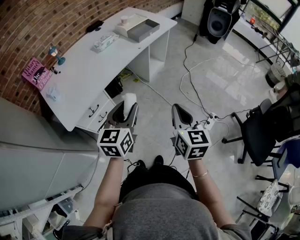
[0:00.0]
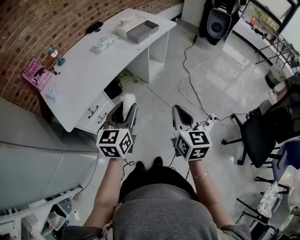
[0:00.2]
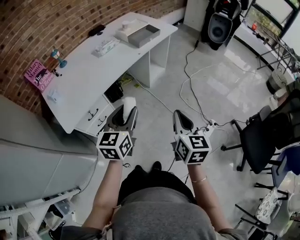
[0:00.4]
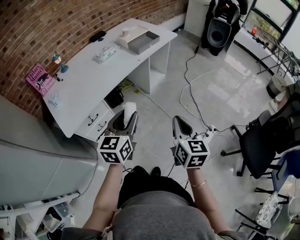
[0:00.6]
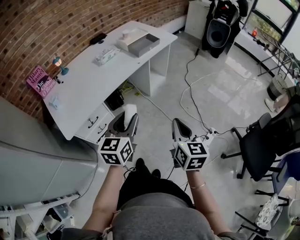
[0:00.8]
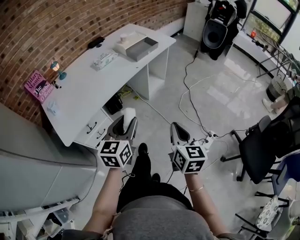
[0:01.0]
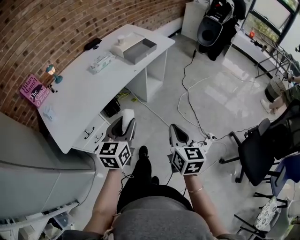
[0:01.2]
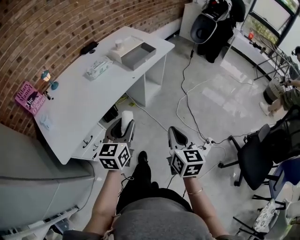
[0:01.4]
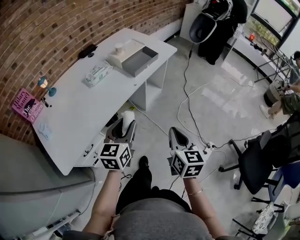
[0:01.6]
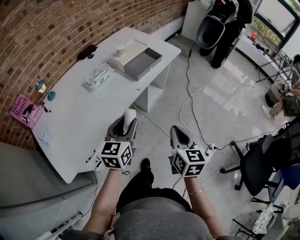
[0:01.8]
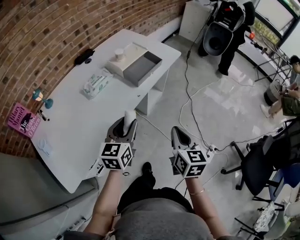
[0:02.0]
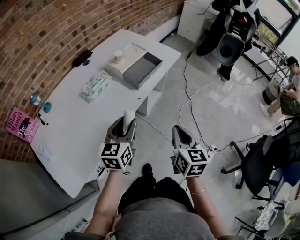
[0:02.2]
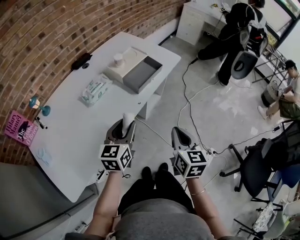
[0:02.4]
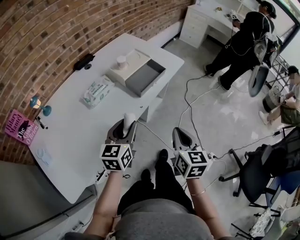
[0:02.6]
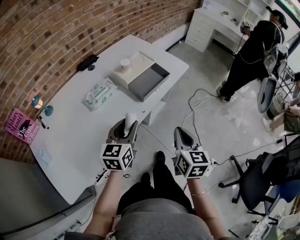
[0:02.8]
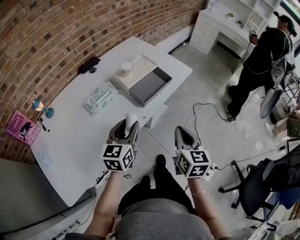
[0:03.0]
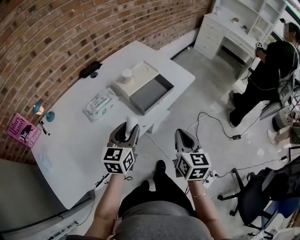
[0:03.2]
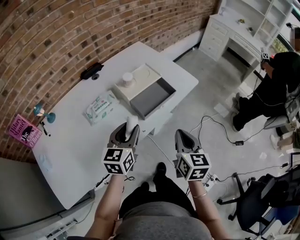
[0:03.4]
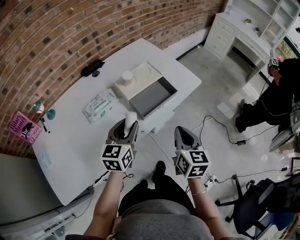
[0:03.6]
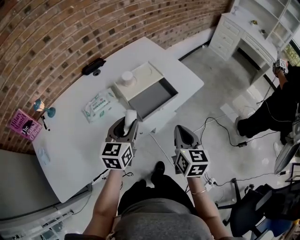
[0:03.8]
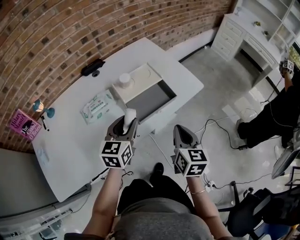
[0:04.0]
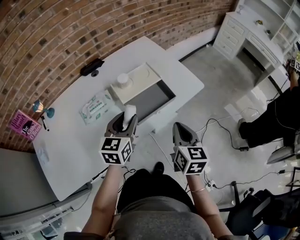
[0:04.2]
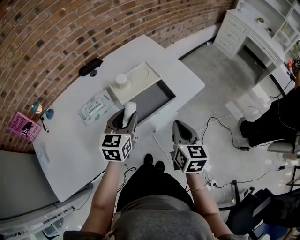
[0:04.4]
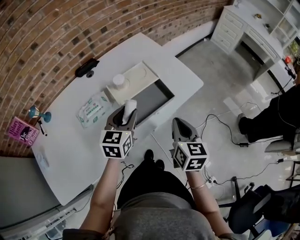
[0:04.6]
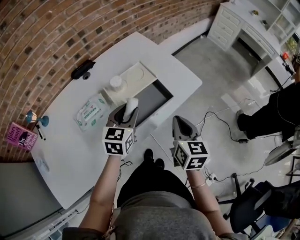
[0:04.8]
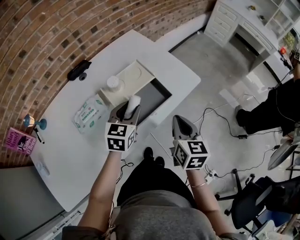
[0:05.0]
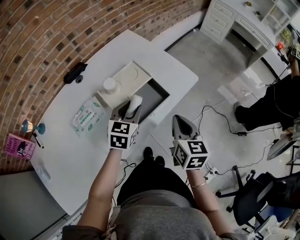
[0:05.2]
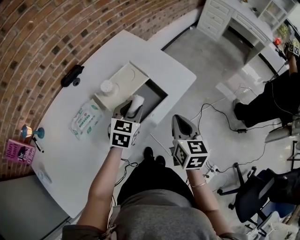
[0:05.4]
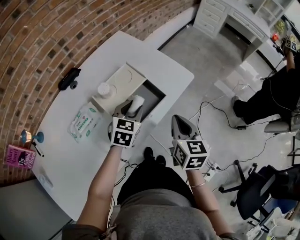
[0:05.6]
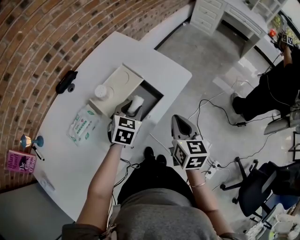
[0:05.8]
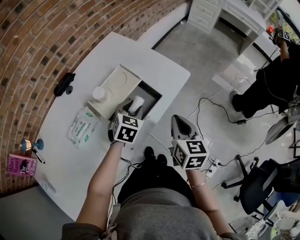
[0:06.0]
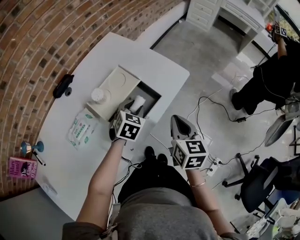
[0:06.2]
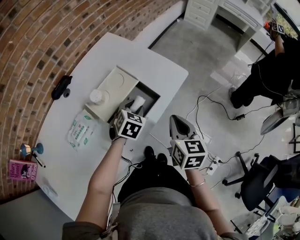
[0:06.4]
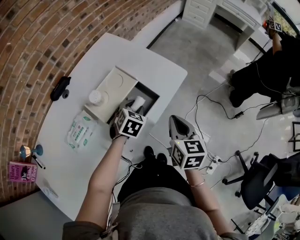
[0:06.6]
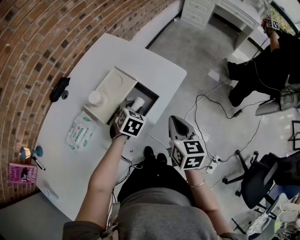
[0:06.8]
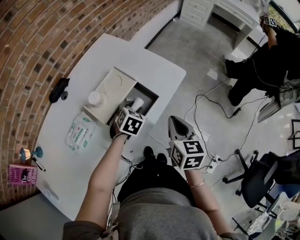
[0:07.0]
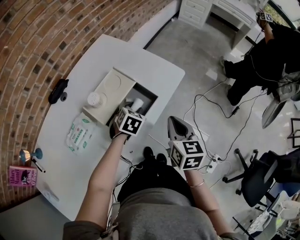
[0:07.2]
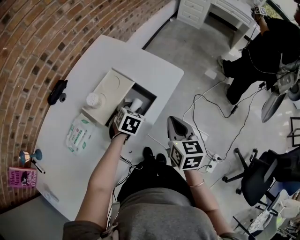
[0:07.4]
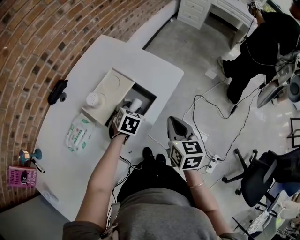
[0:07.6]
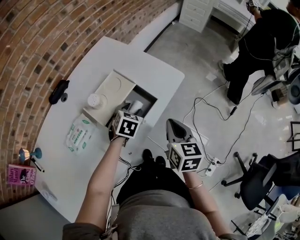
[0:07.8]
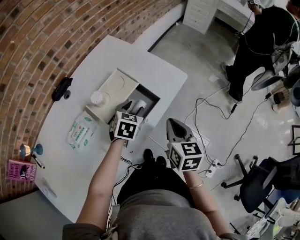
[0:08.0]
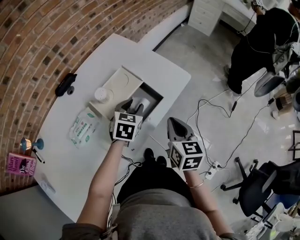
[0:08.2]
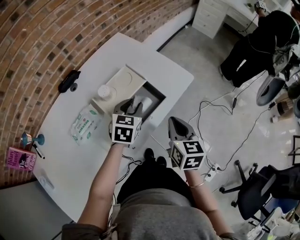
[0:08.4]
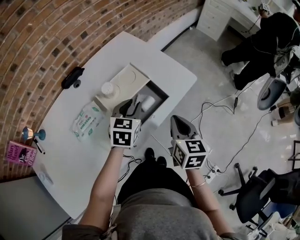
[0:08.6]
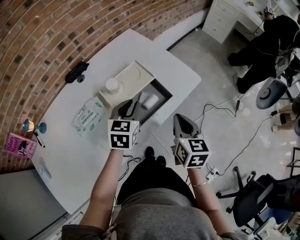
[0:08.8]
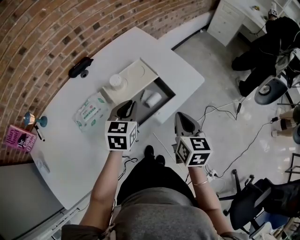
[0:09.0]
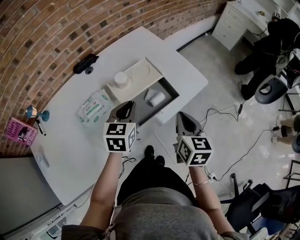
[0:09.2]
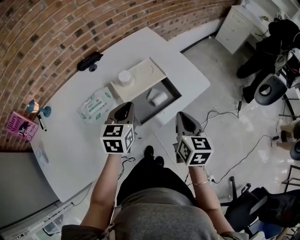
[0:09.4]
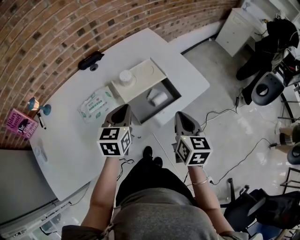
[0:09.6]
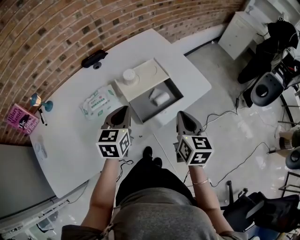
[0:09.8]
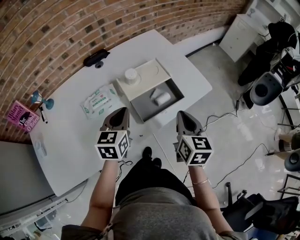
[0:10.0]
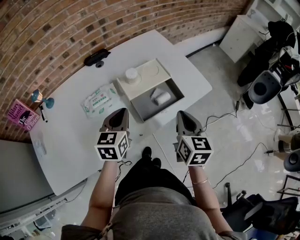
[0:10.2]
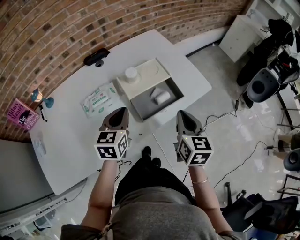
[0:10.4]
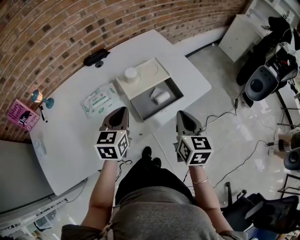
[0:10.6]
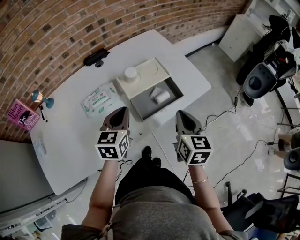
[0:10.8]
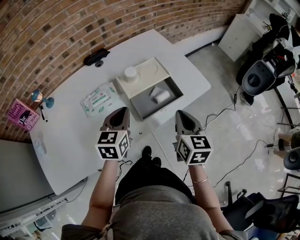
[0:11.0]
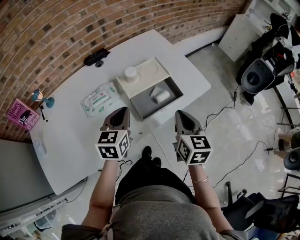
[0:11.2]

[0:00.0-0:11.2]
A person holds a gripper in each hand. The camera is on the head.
0:00.0 to 0:01.6: The two grippers go approximately 20 cm forward.
0:01.6 to 0:03.2: The two grippers go some 25 cm forward.
0:03.2 to 0:04.8: Both grippers move forward, approximately 15 cm.
0:04.8 to 0:06.4: The left gripper is displaced downward, forward and to the right by approximately 15 cm, and turns by about 40 degrees.
0:06.4 to 0:08.0: The grippers stay close to where they were, moving slightly.
0:08.0 to 0:09.6: The left gripper goes some 20 cm to the left, upward and backward, changes its angle by about 40 degrees, and closes its fingers; the right gripper moves some 5 cm.
0:09.6 to 0:11.2: The grippers make only small movements.

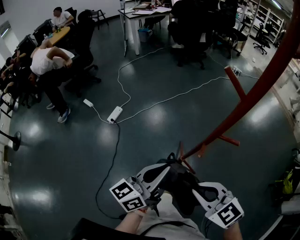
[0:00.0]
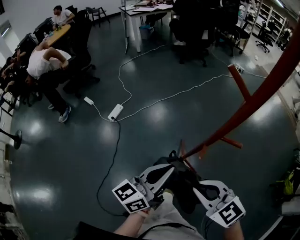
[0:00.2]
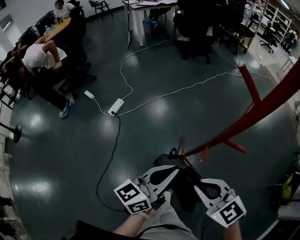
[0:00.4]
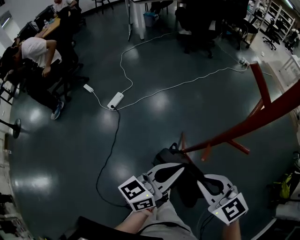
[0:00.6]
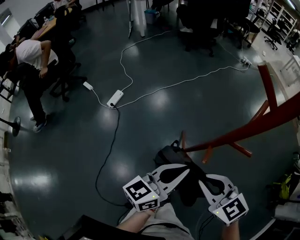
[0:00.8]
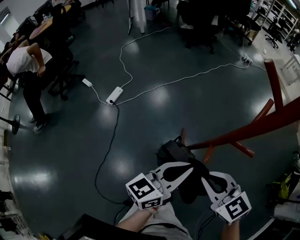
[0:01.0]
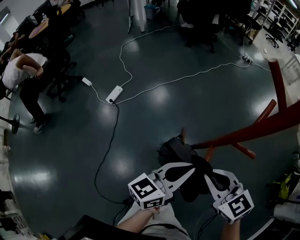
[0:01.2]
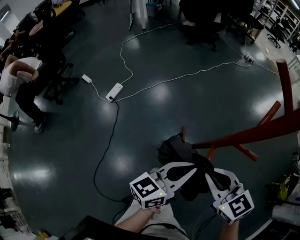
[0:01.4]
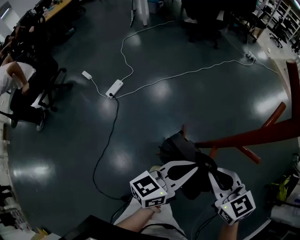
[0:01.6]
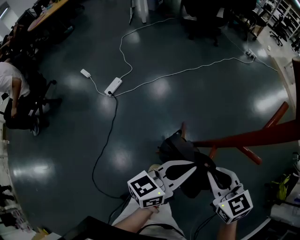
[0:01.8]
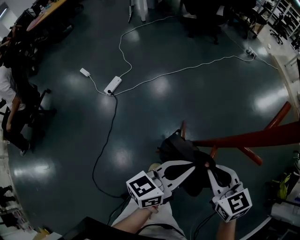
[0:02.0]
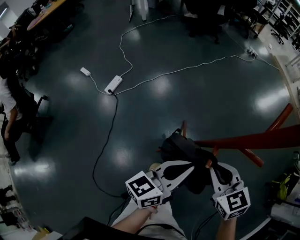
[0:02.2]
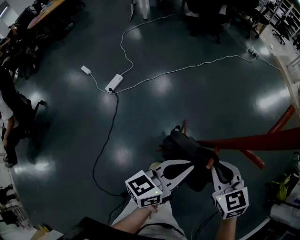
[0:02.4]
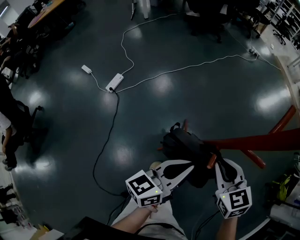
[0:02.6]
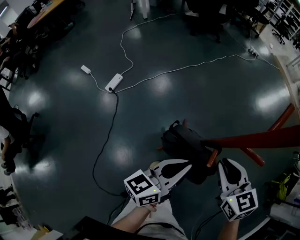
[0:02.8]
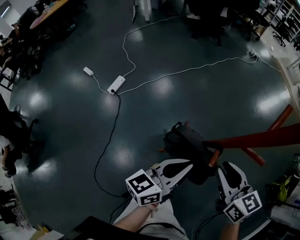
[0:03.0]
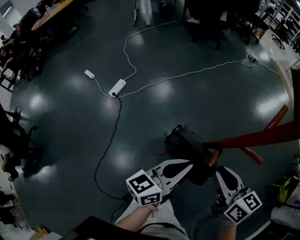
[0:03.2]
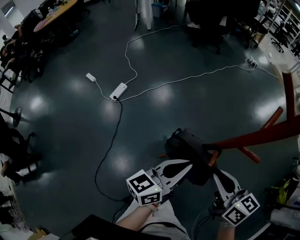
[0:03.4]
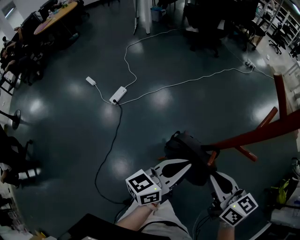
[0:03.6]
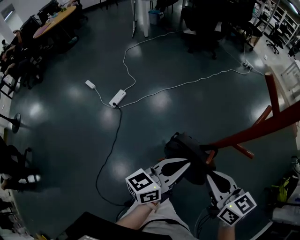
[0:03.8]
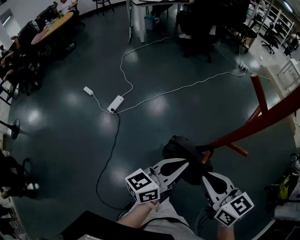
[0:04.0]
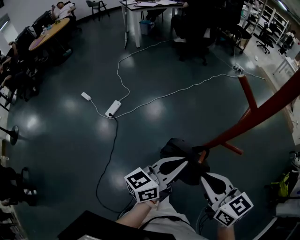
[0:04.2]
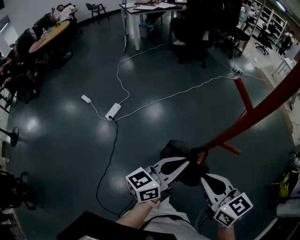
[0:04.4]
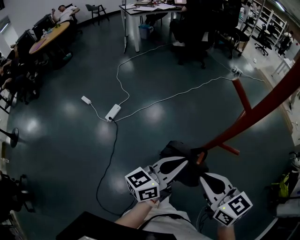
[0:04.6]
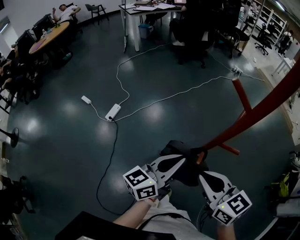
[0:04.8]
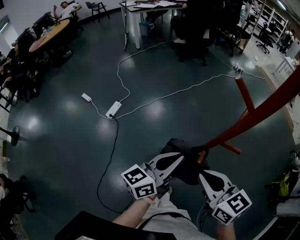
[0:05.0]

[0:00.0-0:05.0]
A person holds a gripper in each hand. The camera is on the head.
0:00.0 to 0:01.6: The right gripper moves forward, downward and to the right, approximately 15 cm. The left gripper travels to the right, downward and forward by about 15 cm.
0:01.6 to 0:03.4: The right gripper moves roughly 5 cm downward and comes back, and changes its angle by about 30 degrees.
0:03.4 to 0:05.0: The grippers both shift upward by approximately 5 cm.

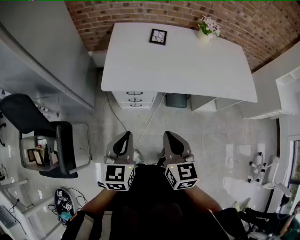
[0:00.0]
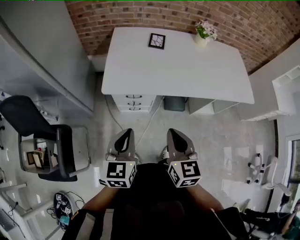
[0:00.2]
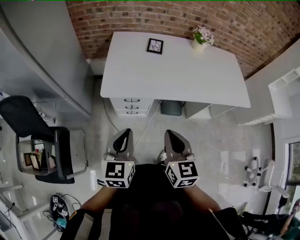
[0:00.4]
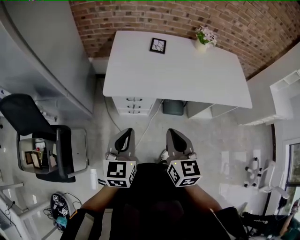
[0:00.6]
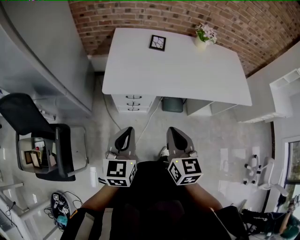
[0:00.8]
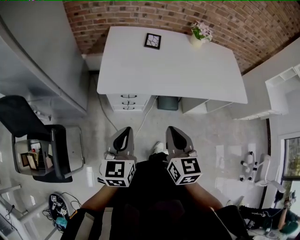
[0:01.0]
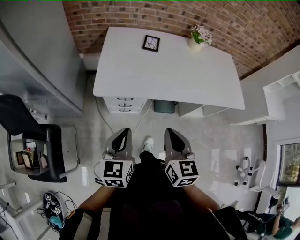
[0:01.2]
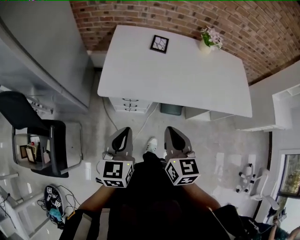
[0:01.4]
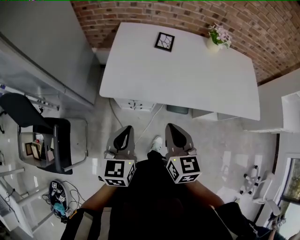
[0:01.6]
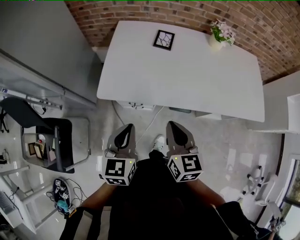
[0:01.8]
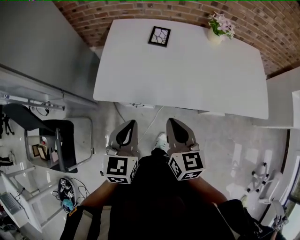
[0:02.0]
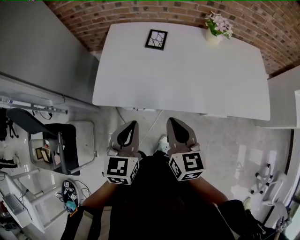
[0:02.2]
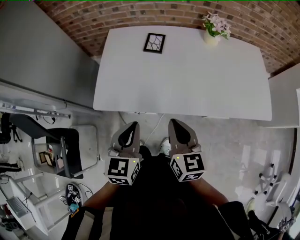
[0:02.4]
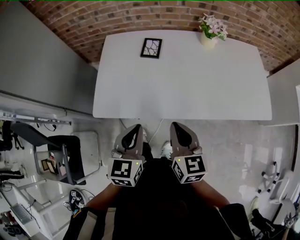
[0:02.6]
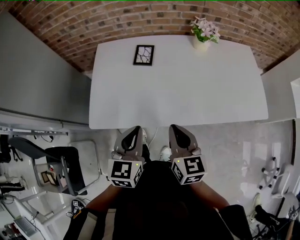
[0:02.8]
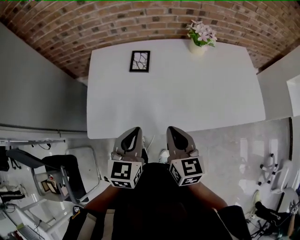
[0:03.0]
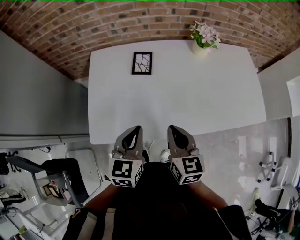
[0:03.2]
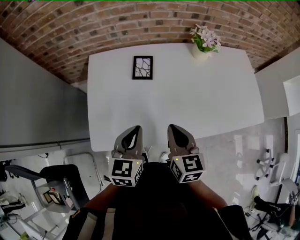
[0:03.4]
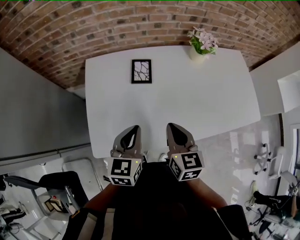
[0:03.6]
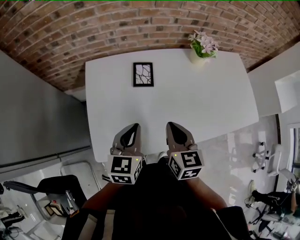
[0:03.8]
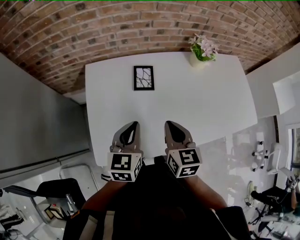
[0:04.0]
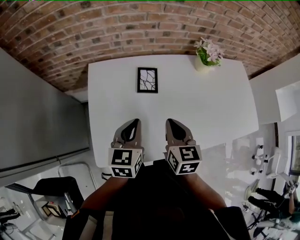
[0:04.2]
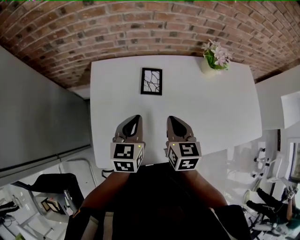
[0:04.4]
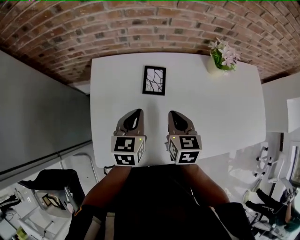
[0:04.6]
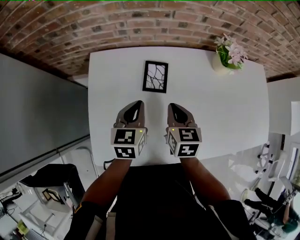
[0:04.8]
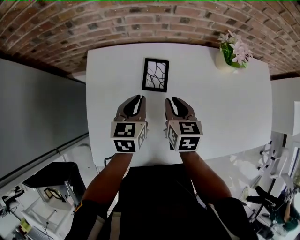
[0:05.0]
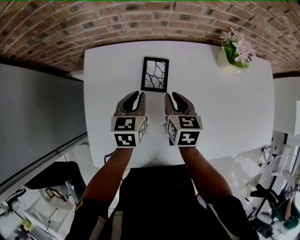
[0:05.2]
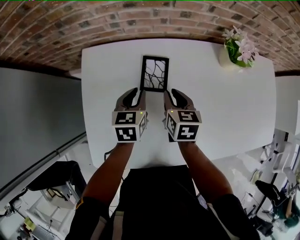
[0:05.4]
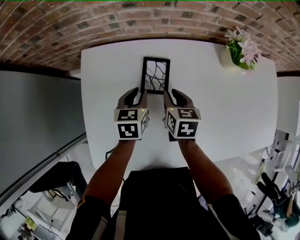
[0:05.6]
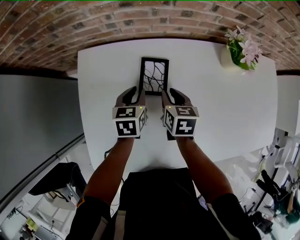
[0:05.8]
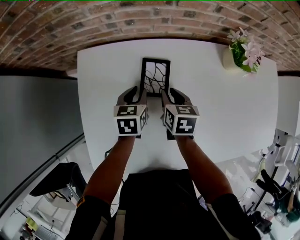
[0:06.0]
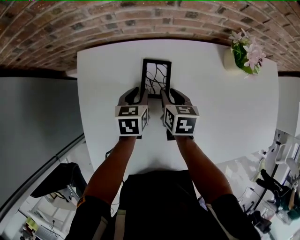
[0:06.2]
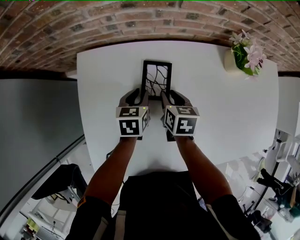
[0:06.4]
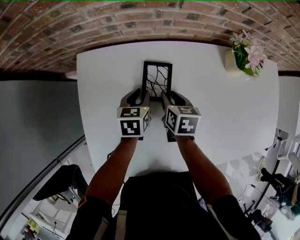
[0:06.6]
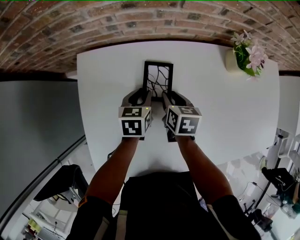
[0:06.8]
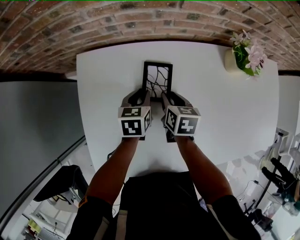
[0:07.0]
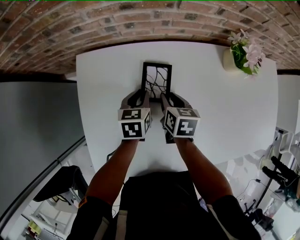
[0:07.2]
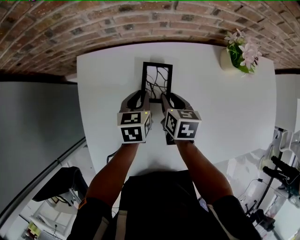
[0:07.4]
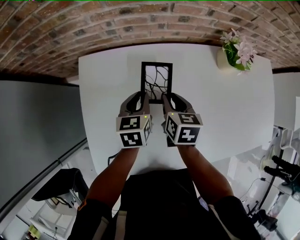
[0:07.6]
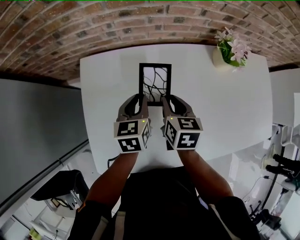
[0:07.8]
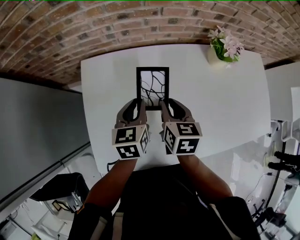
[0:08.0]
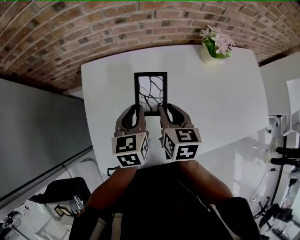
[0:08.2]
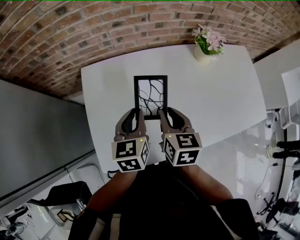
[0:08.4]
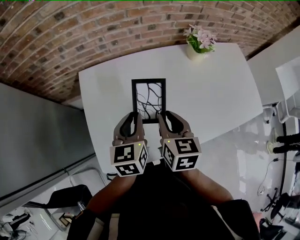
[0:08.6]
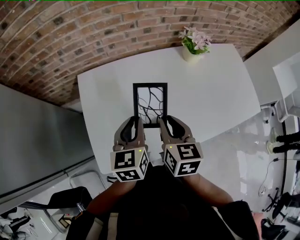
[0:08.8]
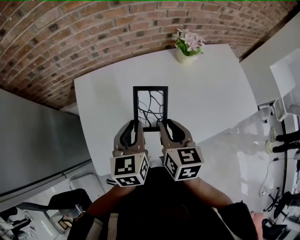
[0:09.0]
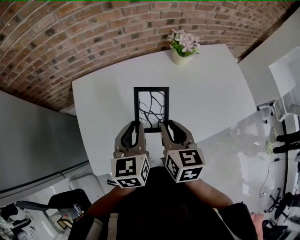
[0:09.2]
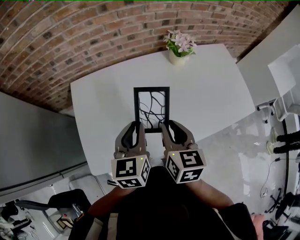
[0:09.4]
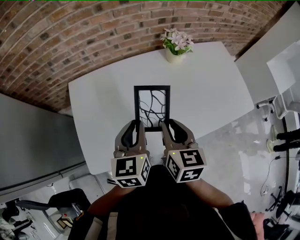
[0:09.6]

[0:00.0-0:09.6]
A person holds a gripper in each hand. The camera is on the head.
0:00.0 to 0:01.6: The grippers both shift forward by about 10 cm.
0:01.6 to 0:03.2: Both grippers move forward and to the right, approximately 20 cm.
0:03.2 to 0:04.8: Both grippers travel together forward, some 20 cm.
0:04.8 to 0:06.4: The two grippers go some 15 cm downward and forward. The left gripper opens its fingers. The right gripper opens.
0:06.4 to 0:08.0: The grippers both shift upward and backward by approximately 15 cm.
0:08.0 to 0:09.6: The grippers both shift backward, upward and to the right by roughly 25 cm.
